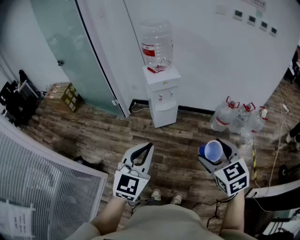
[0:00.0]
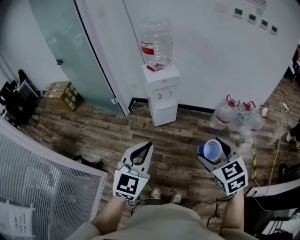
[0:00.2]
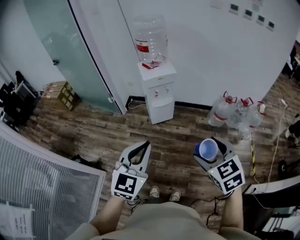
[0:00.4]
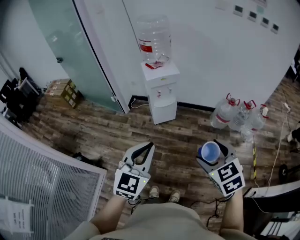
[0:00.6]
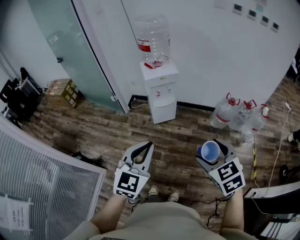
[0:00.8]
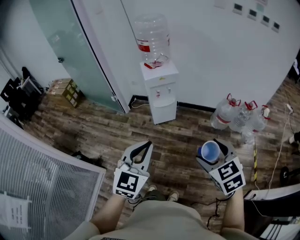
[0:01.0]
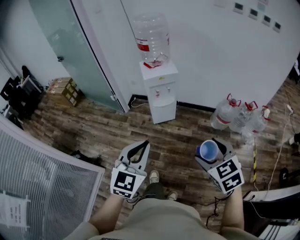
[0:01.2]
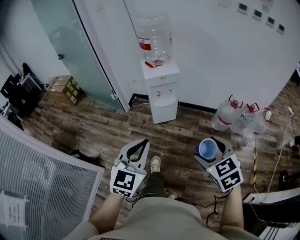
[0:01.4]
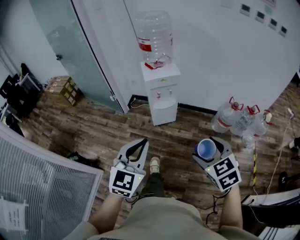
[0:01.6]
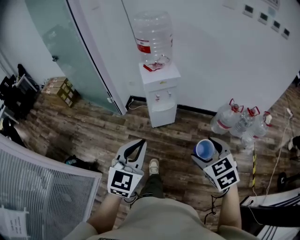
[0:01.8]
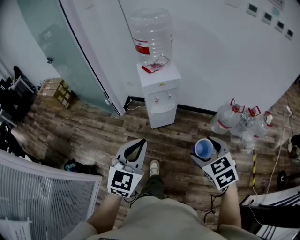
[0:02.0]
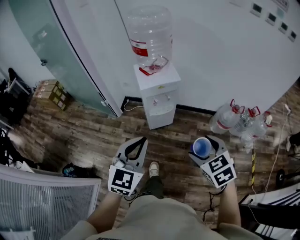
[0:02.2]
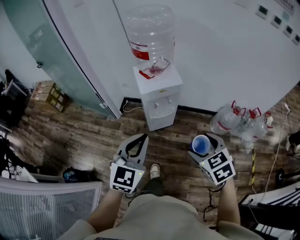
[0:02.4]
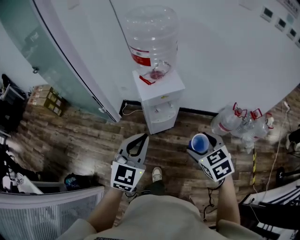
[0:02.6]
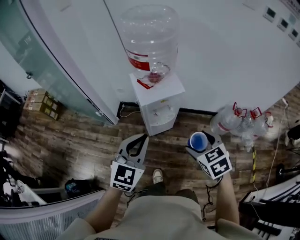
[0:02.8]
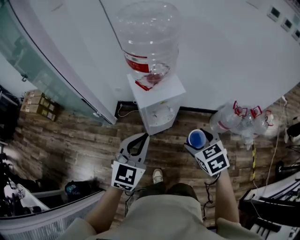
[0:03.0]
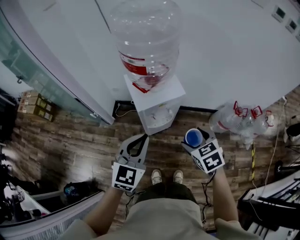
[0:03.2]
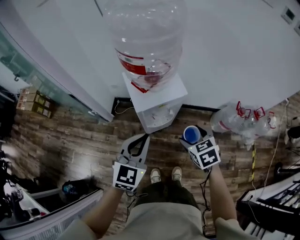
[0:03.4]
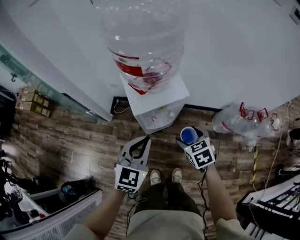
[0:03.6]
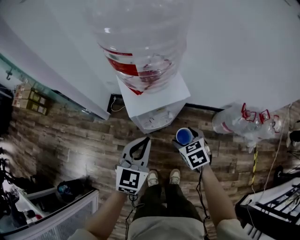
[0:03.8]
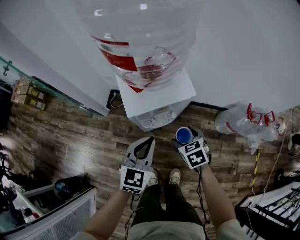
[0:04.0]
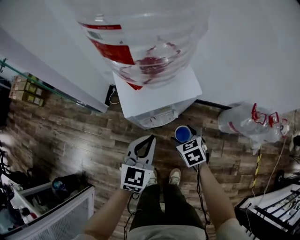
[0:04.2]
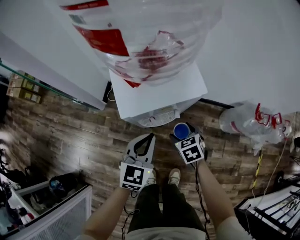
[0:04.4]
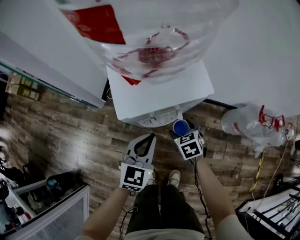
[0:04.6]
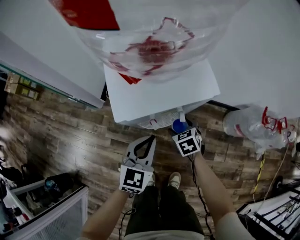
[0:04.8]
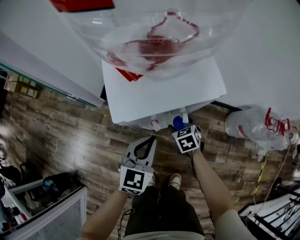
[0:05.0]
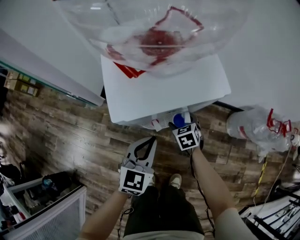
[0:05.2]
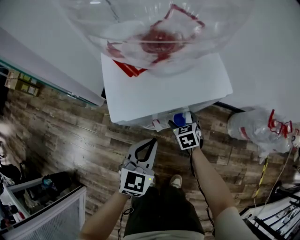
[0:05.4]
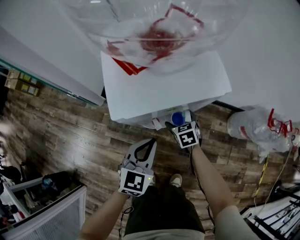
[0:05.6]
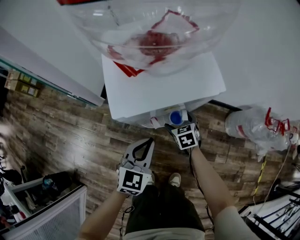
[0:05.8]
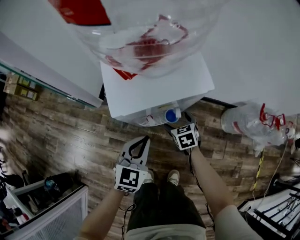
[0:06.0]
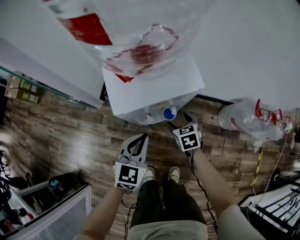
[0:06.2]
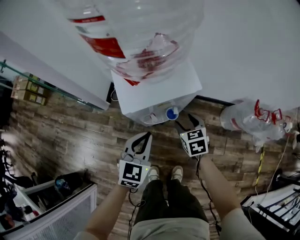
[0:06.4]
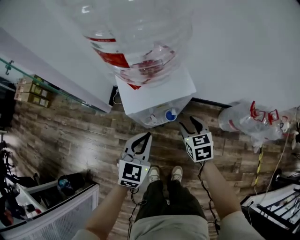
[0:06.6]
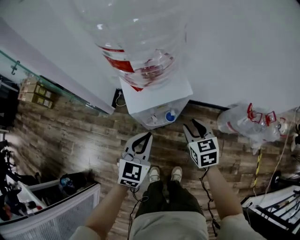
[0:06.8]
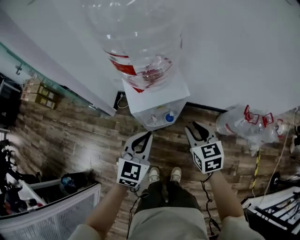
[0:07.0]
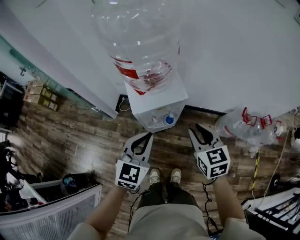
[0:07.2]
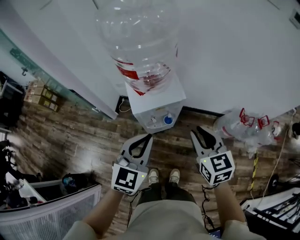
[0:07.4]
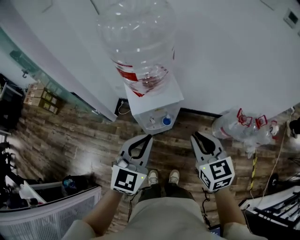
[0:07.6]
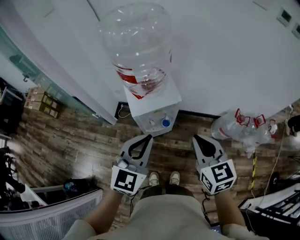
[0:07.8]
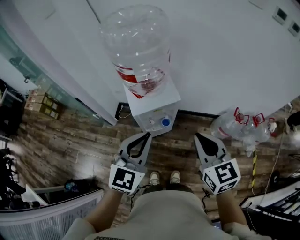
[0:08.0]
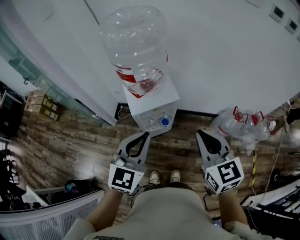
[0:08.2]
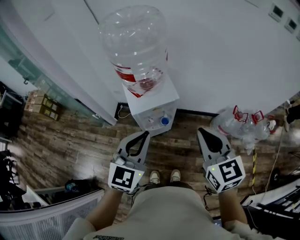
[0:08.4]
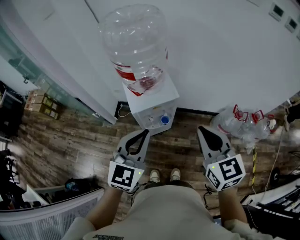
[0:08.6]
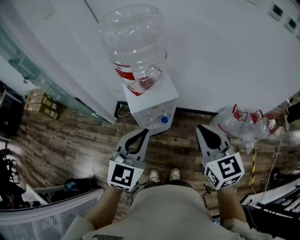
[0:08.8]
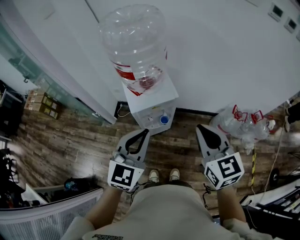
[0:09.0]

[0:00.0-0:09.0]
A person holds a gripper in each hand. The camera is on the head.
0:00.0 to 0:01.6: The right gripper heads forward and downward, covering roughly 10 cm. The left gripper heads forward, covering roughly 5 cm.
0:01.6 to 0:03.0: The two grippers go roughly 35 cm forward.
0:03.0 to 0:04.4: Both grippers travel together downward and forward, some 35 cm.
0:04.4 to 0:06.0: The right gripper heads downward and forward, covering about 10 cm, while the left gripper goes about 5 cm downward.
0:06.0 to 0:07.6: Both grippers move upward, about 40 cm. The right gripper swivels approximately 30 degrees, and closes up.
0:07.6 to 0:09.0: The right gripper is displaced upward by approximately 10 cm.

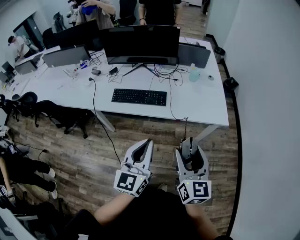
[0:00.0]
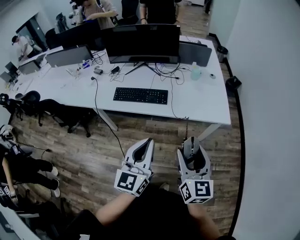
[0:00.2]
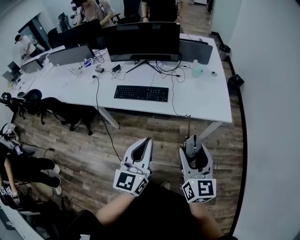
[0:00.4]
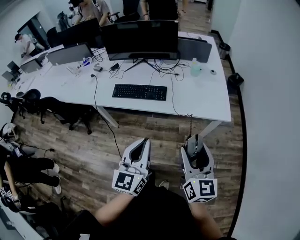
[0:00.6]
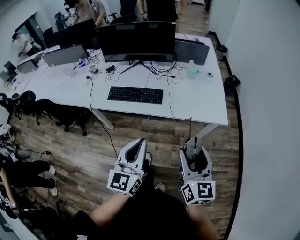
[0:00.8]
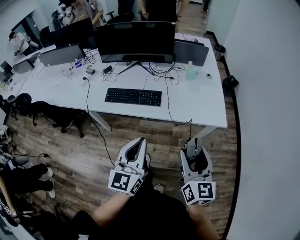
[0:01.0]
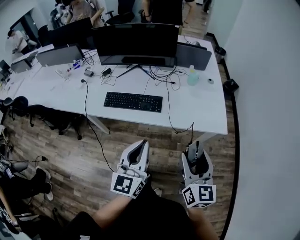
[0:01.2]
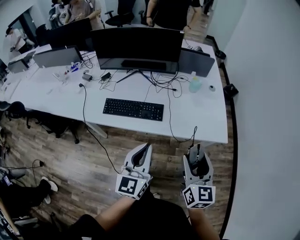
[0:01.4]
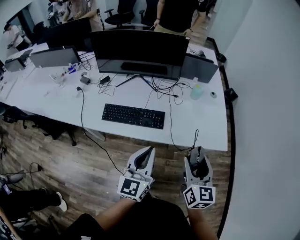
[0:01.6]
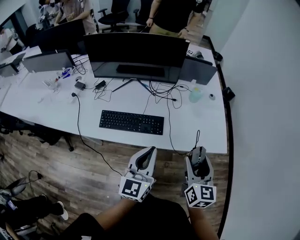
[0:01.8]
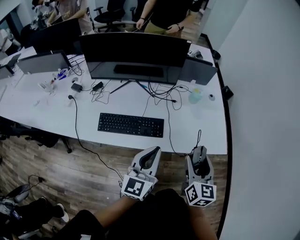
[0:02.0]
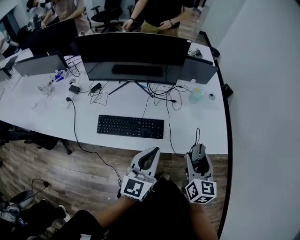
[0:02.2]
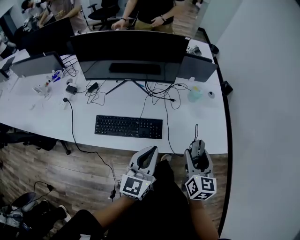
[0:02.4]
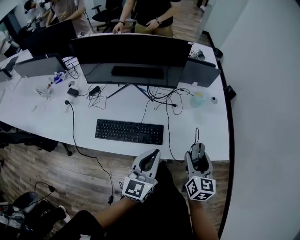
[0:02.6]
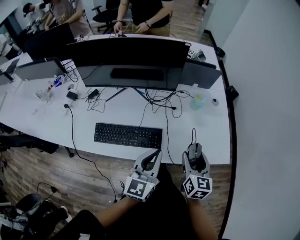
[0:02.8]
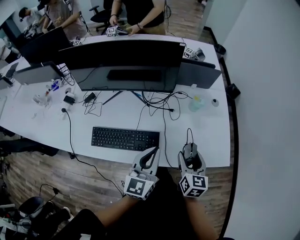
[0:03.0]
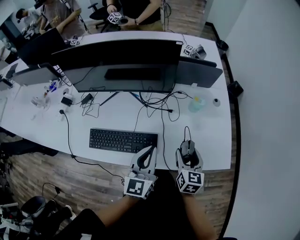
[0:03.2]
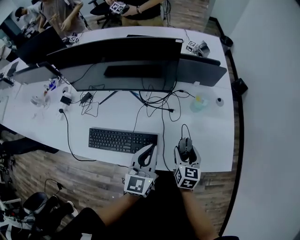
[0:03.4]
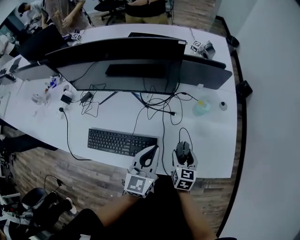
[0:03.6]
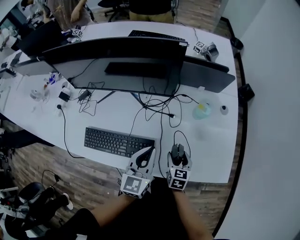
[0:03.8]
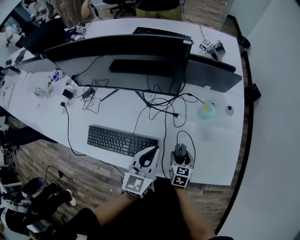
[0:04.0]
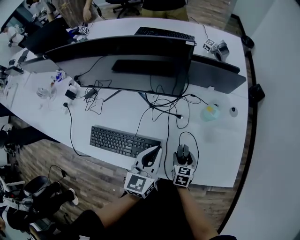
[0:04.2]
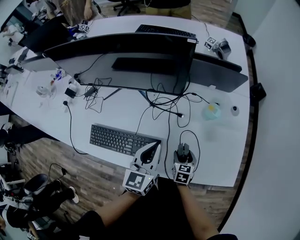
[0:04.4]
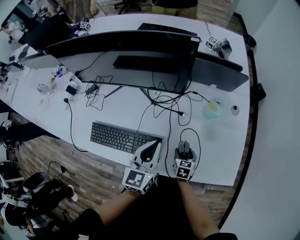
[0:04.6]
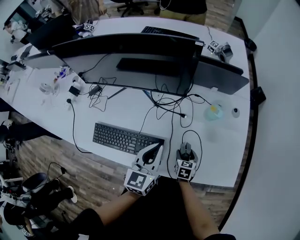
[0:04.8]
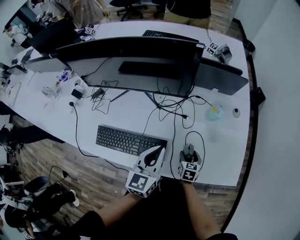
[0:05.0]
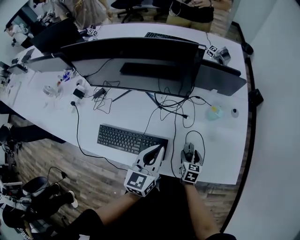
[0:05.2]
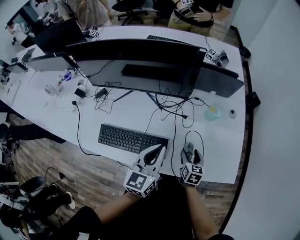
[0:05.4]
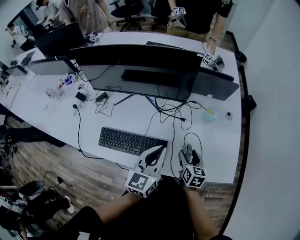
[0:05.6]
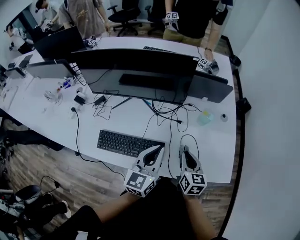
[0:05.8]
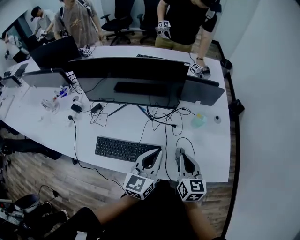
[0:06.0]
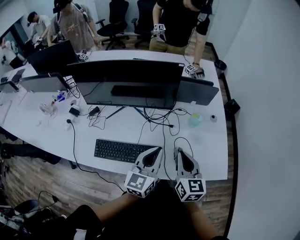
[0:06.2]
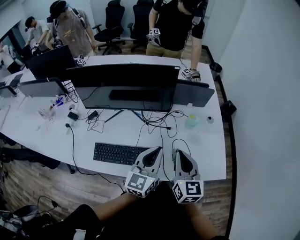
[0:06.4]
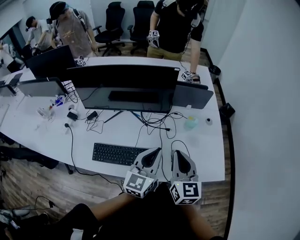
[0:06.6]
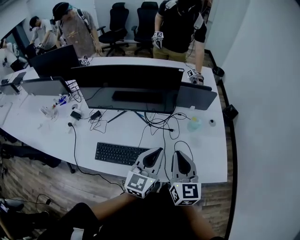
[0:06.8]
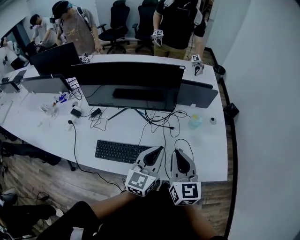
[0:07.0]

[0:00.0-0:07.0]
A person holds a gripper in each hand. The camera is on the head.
0:00.0 to 0:01.4: Both grippers move forward, roughly 15 cm.
0:01.4 to 0:02.8: The right gripper is displaced forward and downward by some 25 cm; the left gripper travels forward by approximately 20 cm.
0:02.8 to 0:04.2: The right gripper heads downward and forward, covering roughly 30 cm, and swivels about 30 degrees. The left gripper is displaced forward and downward by about 15 cm.
0:04.2 to 0:05.6: The right gripper is displaced upward by some 15 cm, while the left gripper moves upward, roughly 5 cm.
0:05.6 to 0:07.0: The right gripper goes approximately 25 cm upward, turns by roughly 30 degrees, and closes up, while the left gripper moves some 5 cm.

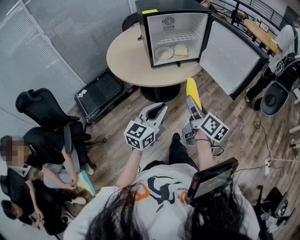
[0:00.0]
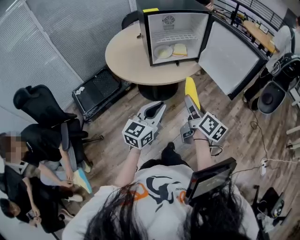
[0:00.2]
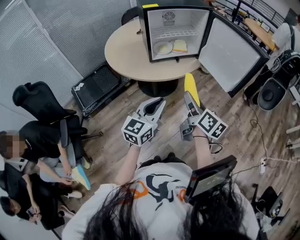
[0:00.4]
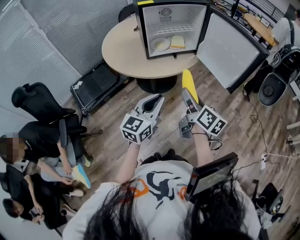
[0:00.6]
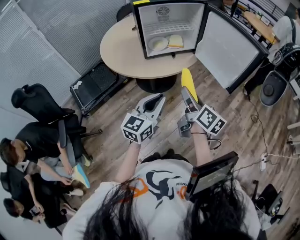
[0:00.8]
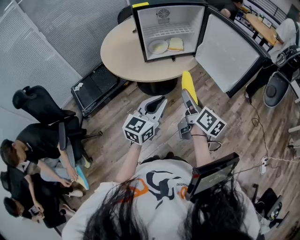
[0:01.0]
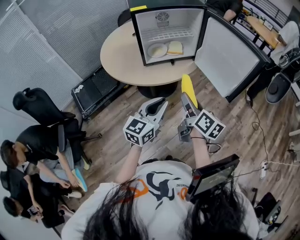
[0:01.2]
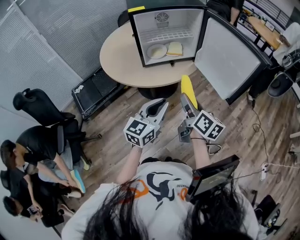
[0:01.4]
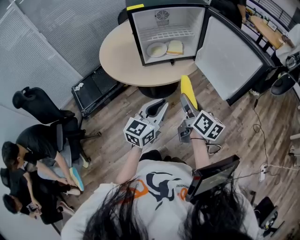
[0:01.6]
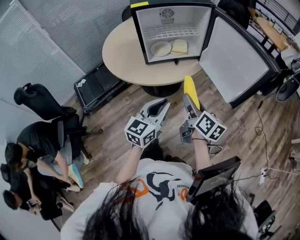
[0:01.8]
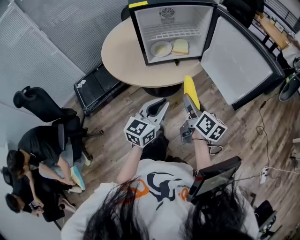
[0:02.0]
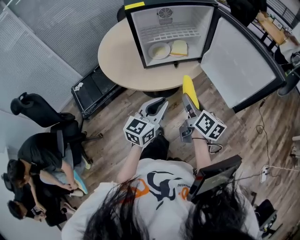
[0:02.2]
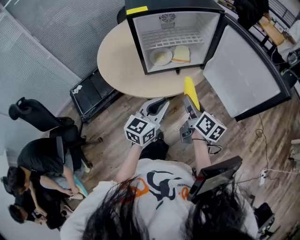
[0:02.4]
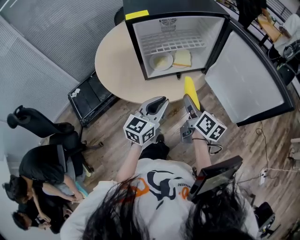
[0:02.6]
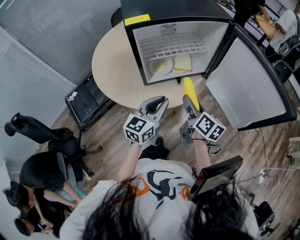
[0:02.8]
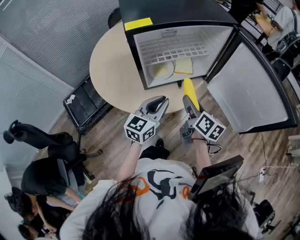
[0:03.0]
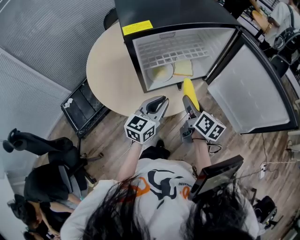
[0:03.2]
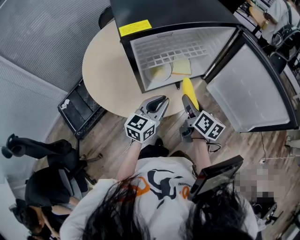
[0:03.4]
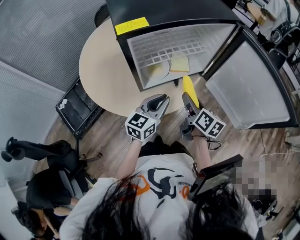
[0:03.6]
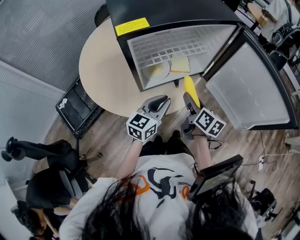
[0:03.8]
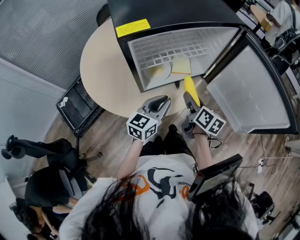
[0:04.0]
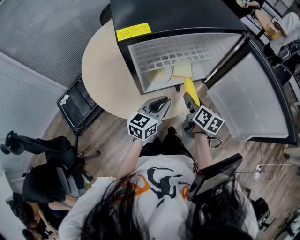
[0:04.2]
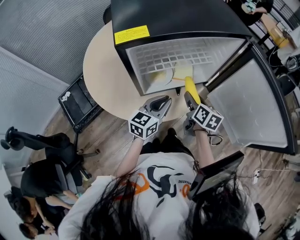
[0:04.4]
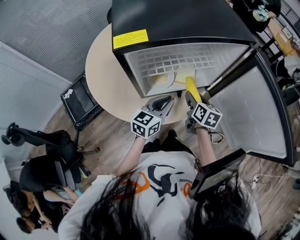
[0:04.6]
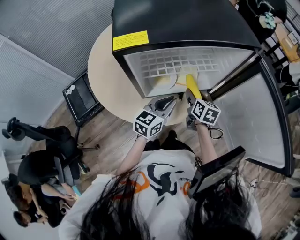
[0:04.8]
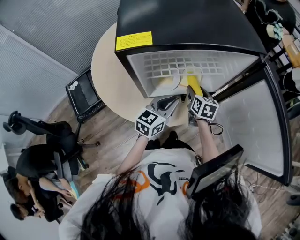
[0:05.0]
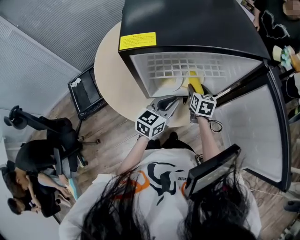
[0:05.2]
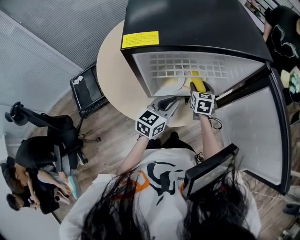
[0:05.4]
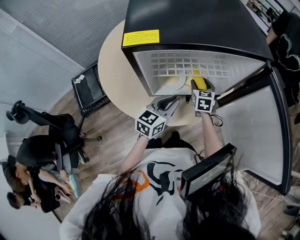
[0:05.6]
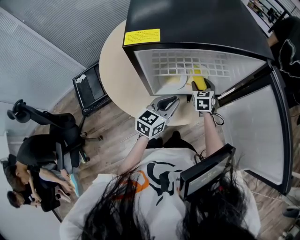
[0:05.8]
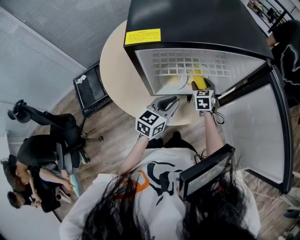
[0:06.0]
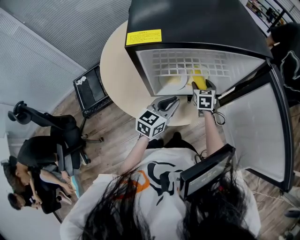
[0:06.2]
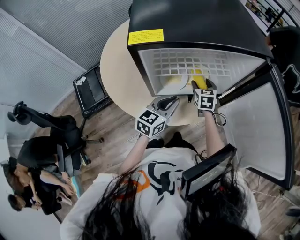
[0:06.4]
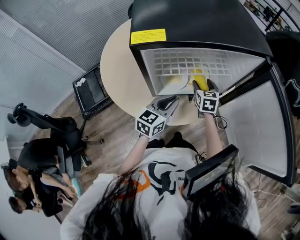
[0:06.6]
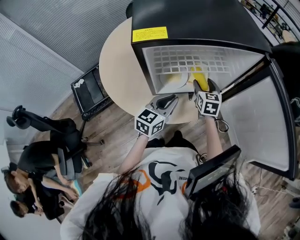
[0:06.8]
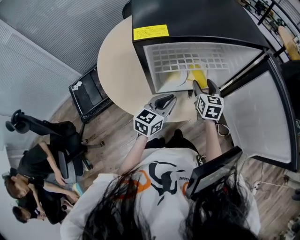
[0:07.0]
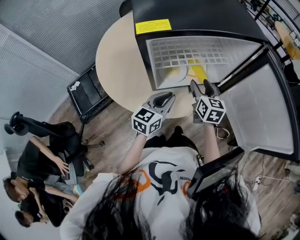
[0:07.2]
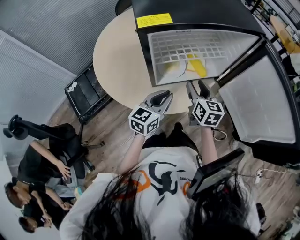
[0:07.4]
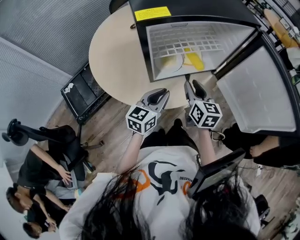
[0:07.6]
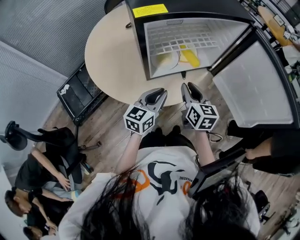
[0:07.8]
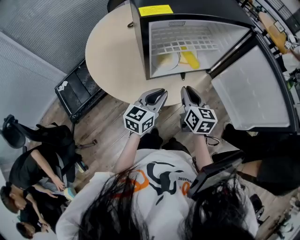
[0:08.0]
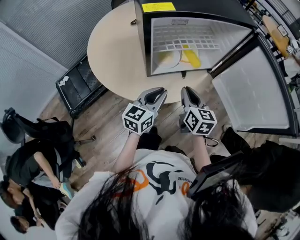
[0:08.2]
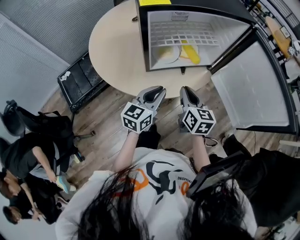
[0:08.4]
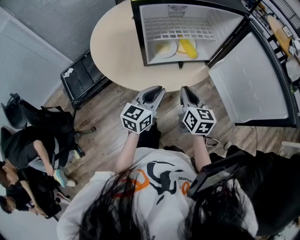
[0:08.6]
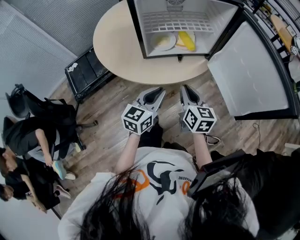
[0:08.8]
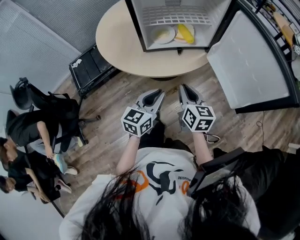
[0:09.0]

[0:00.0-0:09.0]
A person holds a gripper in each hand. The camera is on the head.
0:00.0 to 0:01.6: The left gripper travels forward and to the right by about 10 cm. The right gripper moves forward, approximately 5 cm.
0:01.6 to 0:03.0: The left gripper travels forward and to the left by some 25 cm. The right gripper moves forward, approximately 20 cm.
0:03.0 to 0:04.4: Both grippers travel together forward and downward, roughly 10 cm.
0:04.4 to 0:06.0: The right gripper shifts approximately 15 cm forward, downward and to the left, and rolls counterclockwise, seen from behind, by about 50 degrees.
0:06.0 to 0:07.6: The left gripper moves backward, roughly 10 cm; the right gripper goes about 20 cm backward and upward, swivels approximately 30 degrees, and closes its fingers.
0:07.6 to 0:09.0: Both grippers move backward and to the right, approximately 20 cm.
